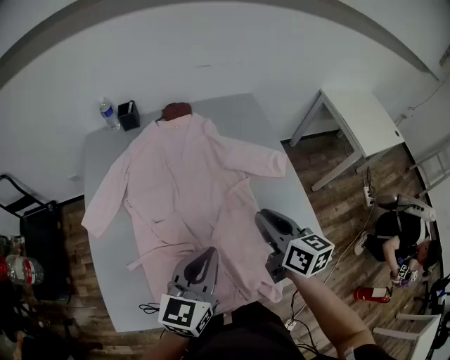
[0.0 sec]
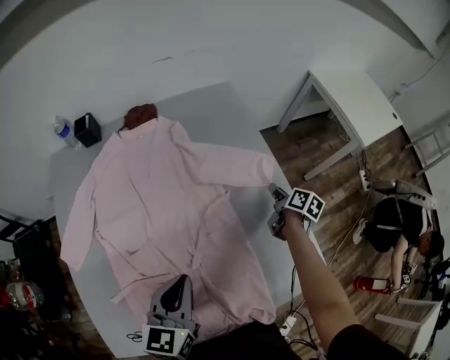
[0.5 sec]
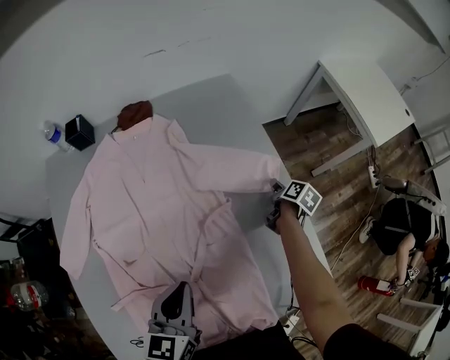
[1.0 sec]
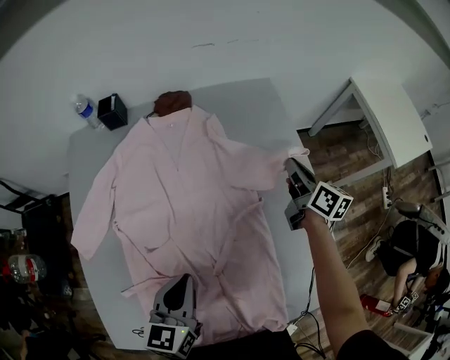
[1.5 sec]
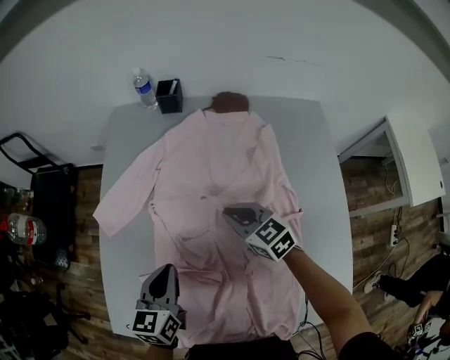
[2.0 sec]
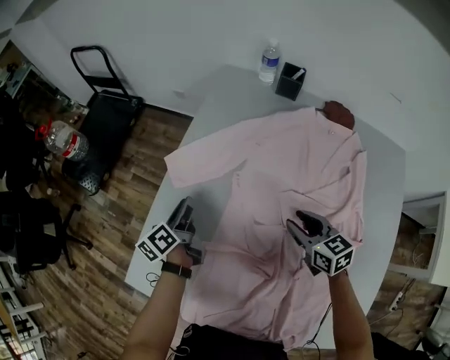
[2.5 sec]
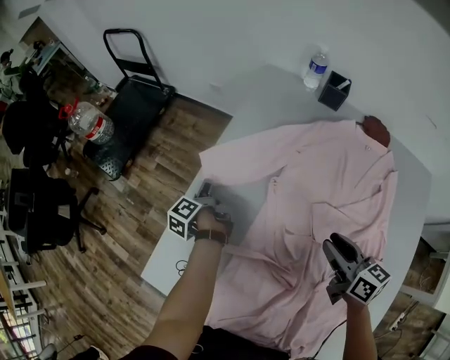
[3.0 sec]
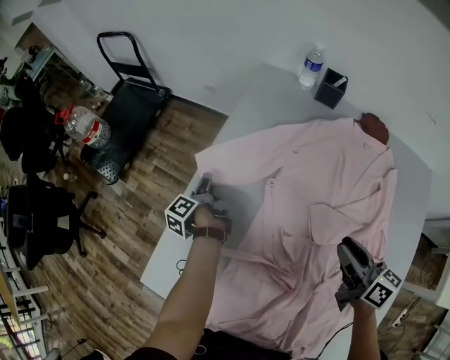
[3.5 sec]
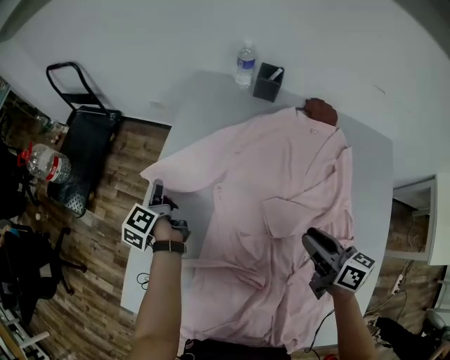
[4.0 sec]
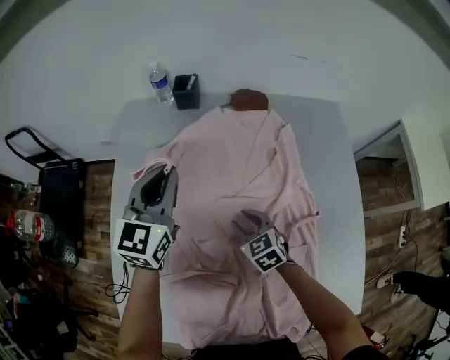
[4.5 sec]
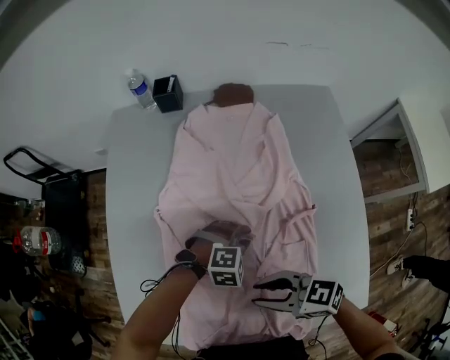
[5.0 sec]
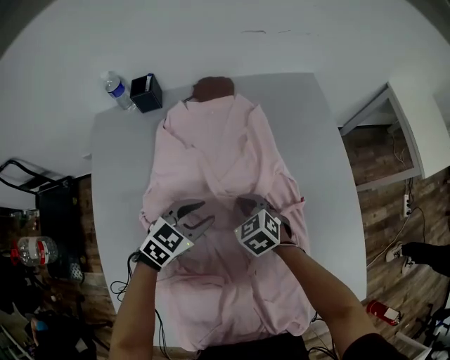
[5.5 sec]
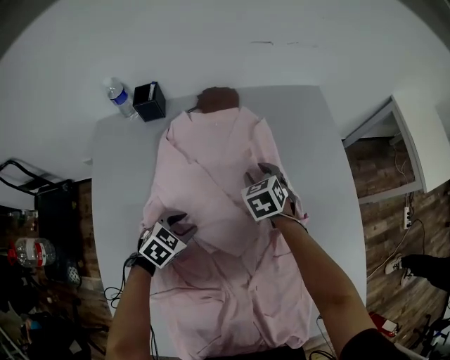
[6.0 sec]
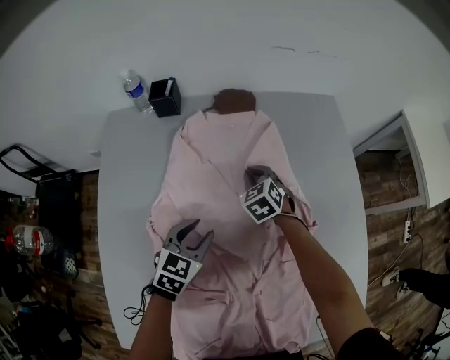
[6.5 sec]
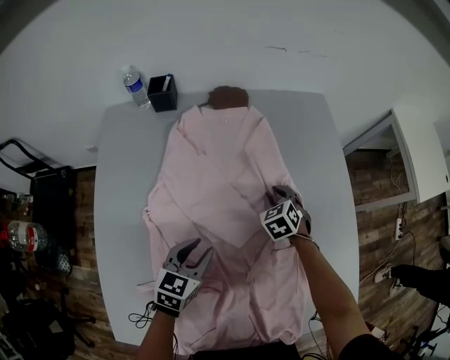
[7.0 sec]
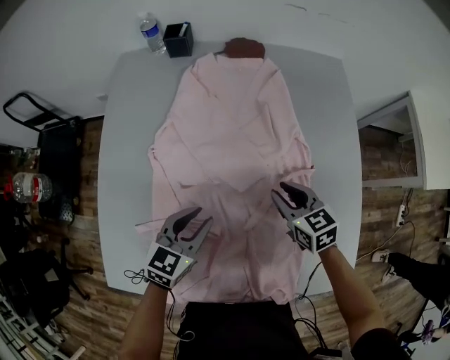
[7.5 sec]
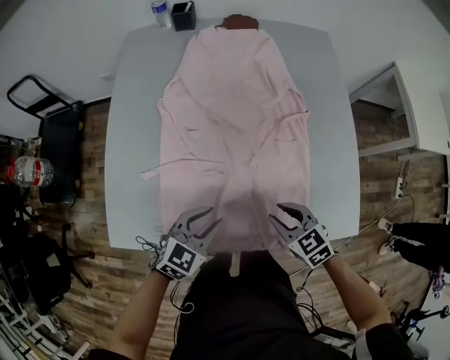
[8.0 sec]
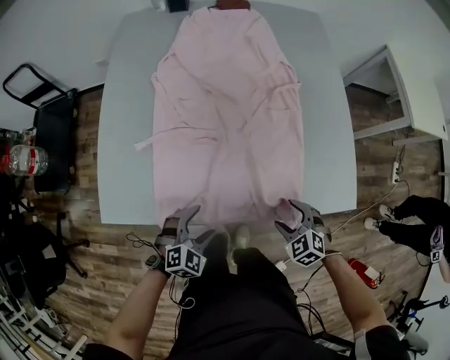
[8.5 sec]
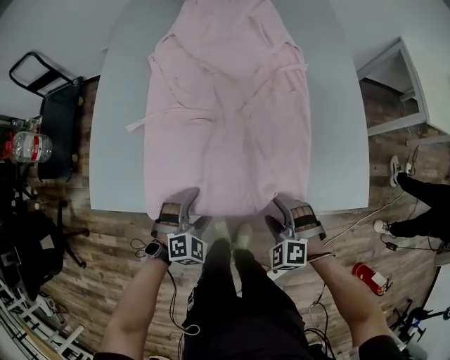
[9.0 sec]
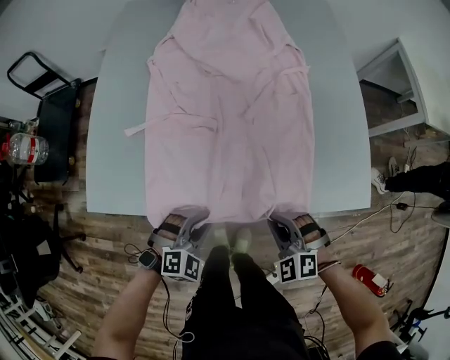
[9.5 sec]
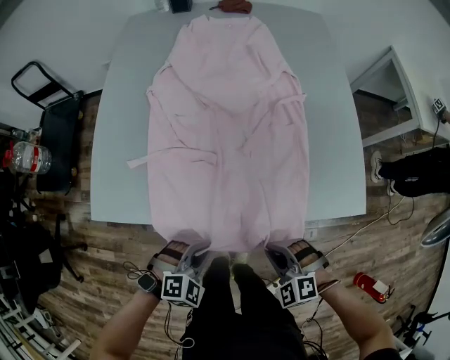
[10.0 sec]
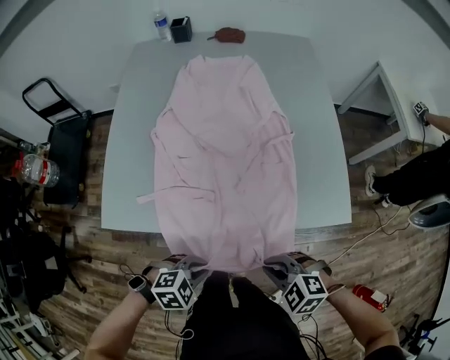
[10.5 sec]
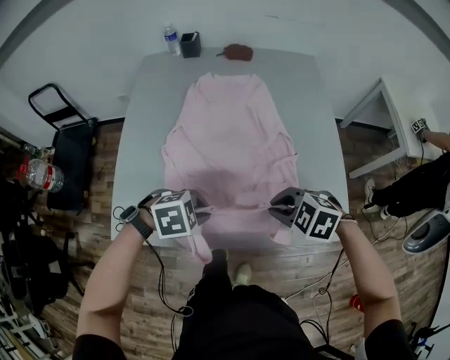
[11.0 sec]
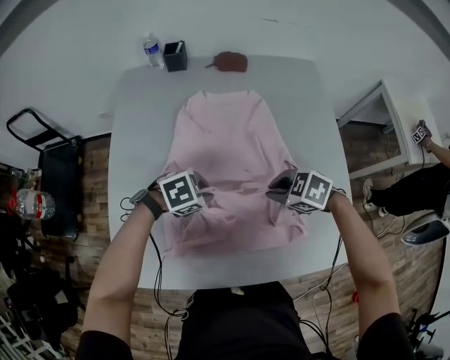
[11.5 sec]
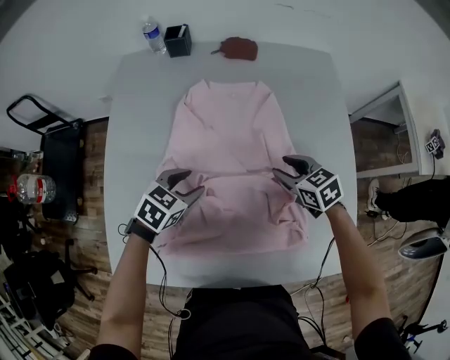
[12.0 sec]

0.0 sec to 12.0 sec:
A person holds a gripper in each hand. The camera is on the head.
0.0 sec to 2.0 sec: The left gripper moves roughly 20 cm, and turns by some 30 degrees. Meanwhile the right gripper goes up and down, roughly 25 cm each way, reversing 2 times, swivels some 50 degrees, and opens and closes again.
2.0 sec to 4.0 sec: The right gripper turns by approximately 40 degrees, while the left gripper goes some 35 cm forward, to the left and downward, twists some 60 degrees counterclockwise, seen from behind, and opens and closes again.
4.0 sec to 6.0 sec: The right gripper goes up and down, some 15 cm each way, reversing 2 times, and rotates approximately 60 degrees, while the left gripper swings up and down, about 25 cm each way, with 3 reversals, points its fingers some 30 degrees further downward, and opens.
6.0 sec to 8.0 sec: The right gripper moves roughly 50 cm, and rotates some 30 degrees; the left gripper moves about 35 cm, and rotates about 20 degrees.
8.0 sec to 10.0 sec: The left gripper shifts some 20 cm backward and downward, rotates about 40 degrees, and opens, then closes once more, while the right gripper shifts some 20 cm backward, twists roughly 40 degrees counterclockwise, seen from behind, and opens, then closes again.
10.0 sec to 12.0 sec: The right gripper moves about 40 cm, rolls clockwise, seen from behind, by some 50 degrees, and opens, while the left gripper shifts by about 40 cm, rotates about 40 degrees, and opens up.

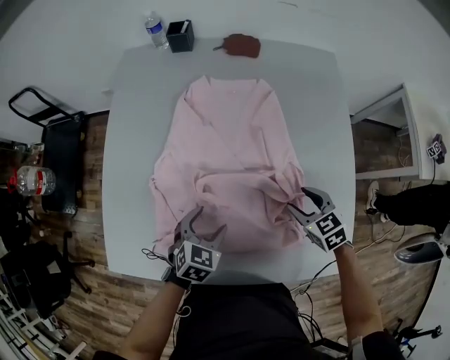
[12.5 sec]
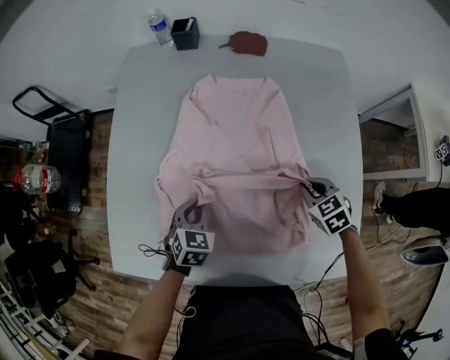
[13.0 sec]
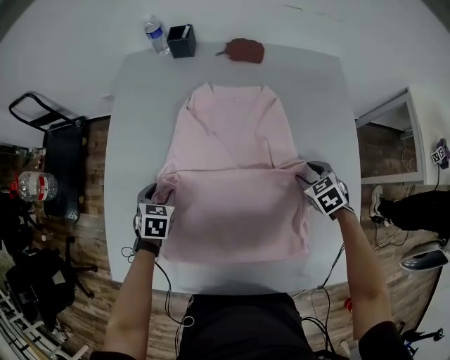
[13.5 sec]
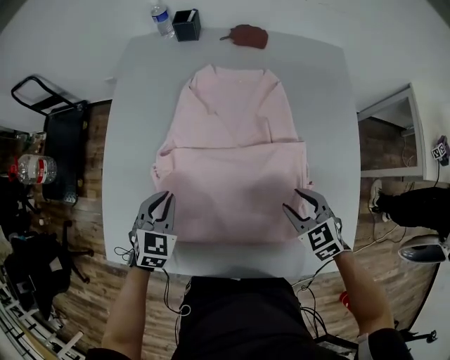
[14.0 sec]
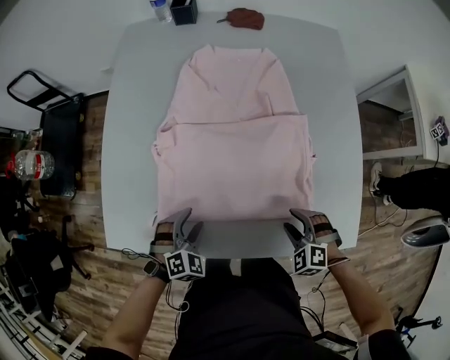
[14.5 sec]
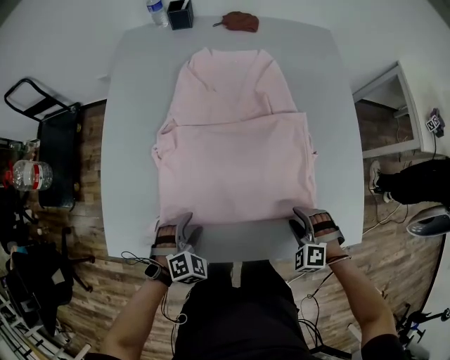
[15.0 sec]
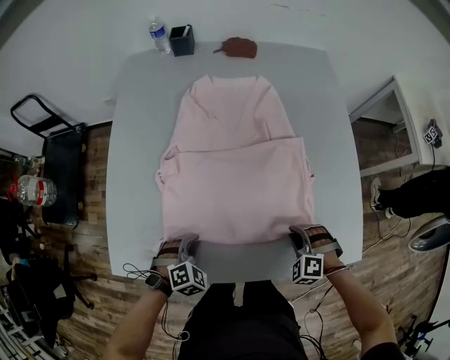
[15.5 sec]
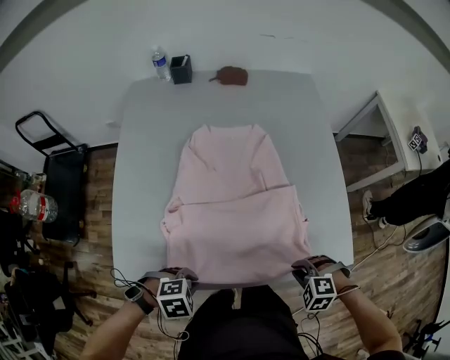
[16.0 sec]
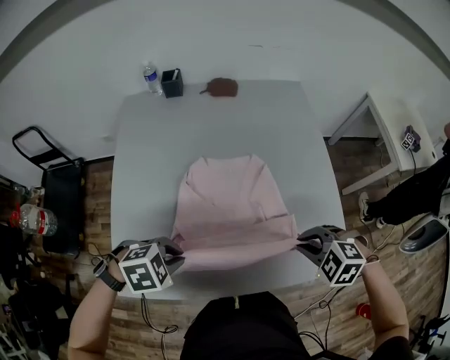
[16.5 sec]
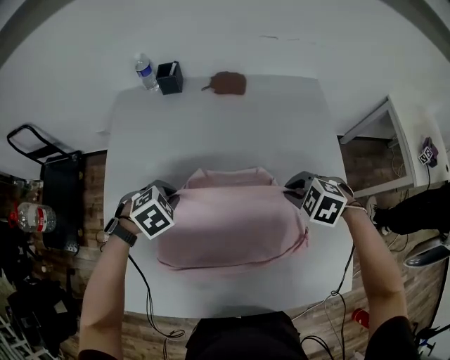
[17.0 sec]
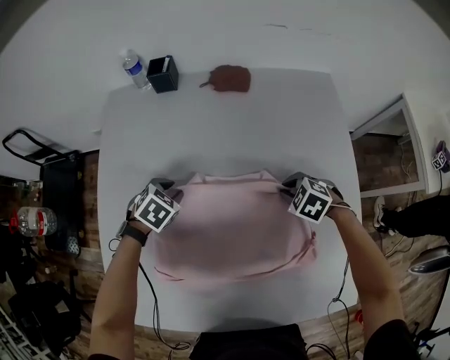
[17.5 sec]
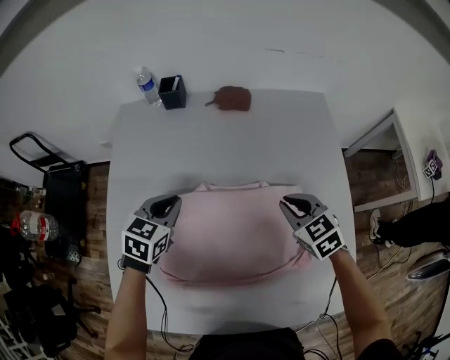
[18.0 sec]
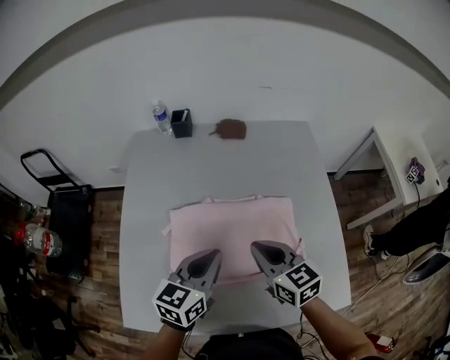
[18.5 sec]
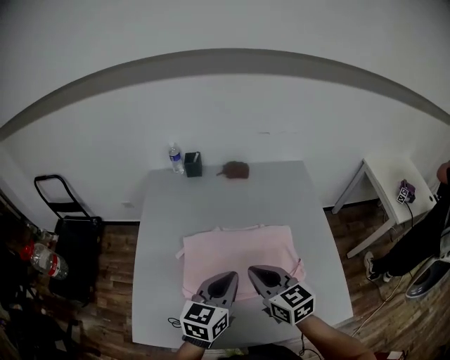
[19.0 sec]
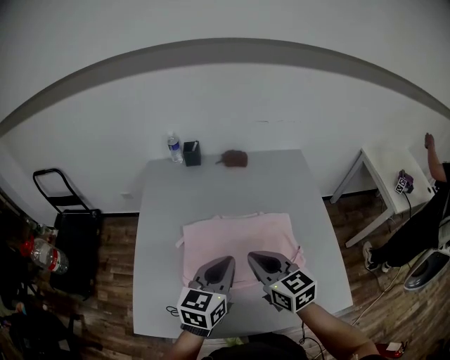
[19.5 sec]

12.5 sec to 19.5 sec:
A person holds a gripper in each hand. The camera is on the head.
12.5 sec to 14.5 sec: The left gripper travels backward, to the left and downward by approximately 15 cm, changes its angle by approximately 30 degrees, and closes and opens again. The right gripper travels backward by some 15 cm, rotates around the line of its fingers by about 40 degrees, counterclockwise from behind, and closes, then reopens.
14.5 sec to 16.0 sec: The left gripper moves approximately 10 cm, swivels roughly 40 degrees, and closes its fingers, while the right gripper moves roughly 10 cm, and closes.
16.0 sec to 17.5 sec: The pair of grippers is taken some 40 cm. The left gripper rotates approximately 40 degrees.
17.5 sec to 19.5 sec: The left gripper travels upward and backward by about 35 cm, and tilts its fingers some 50 degrees upward. Meanwhile the right gripper shifts some 35 cm upward, backward and to the left, and tilts its fingers some 50 degrees upward.

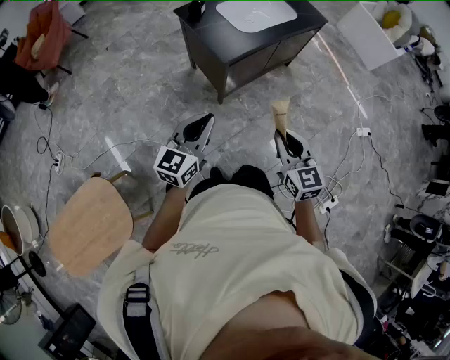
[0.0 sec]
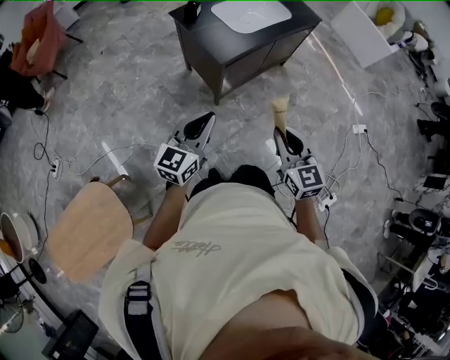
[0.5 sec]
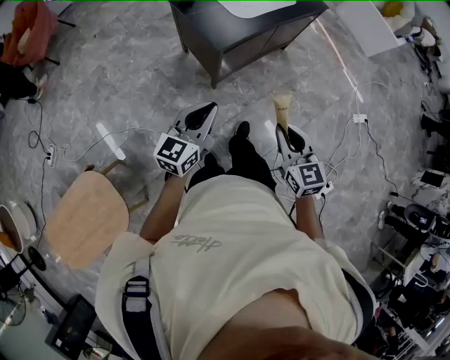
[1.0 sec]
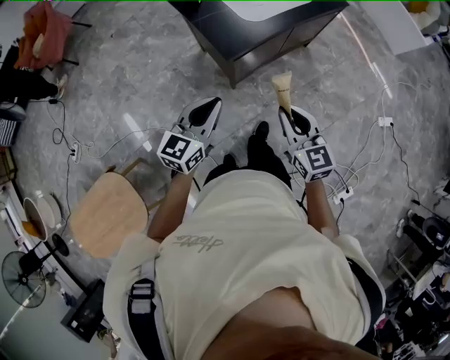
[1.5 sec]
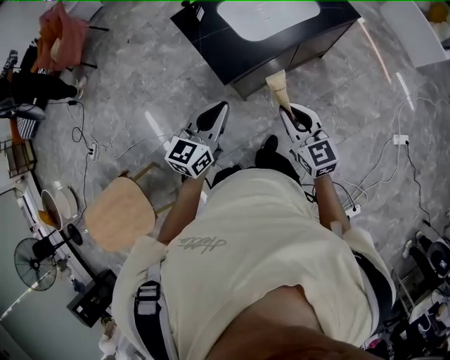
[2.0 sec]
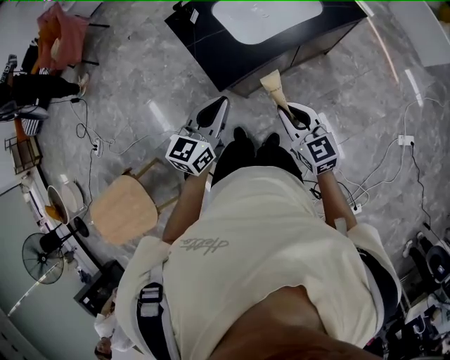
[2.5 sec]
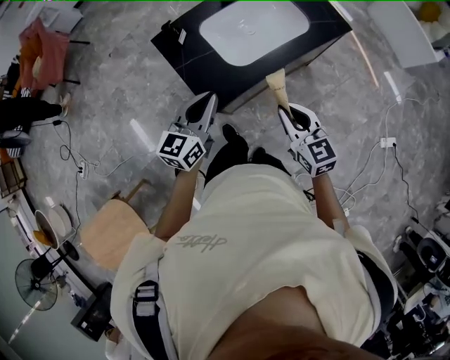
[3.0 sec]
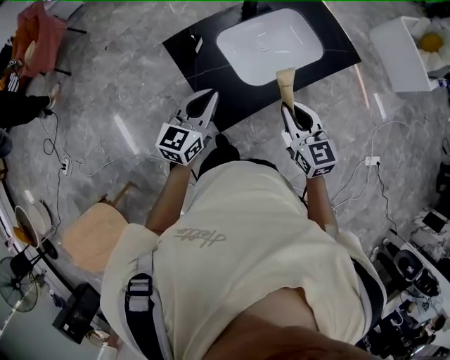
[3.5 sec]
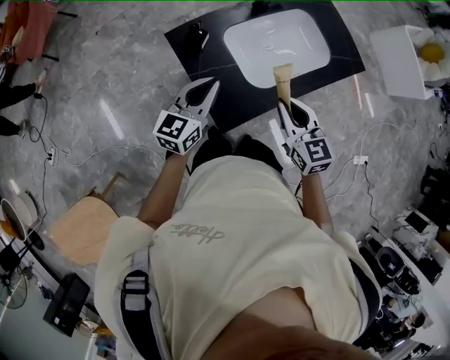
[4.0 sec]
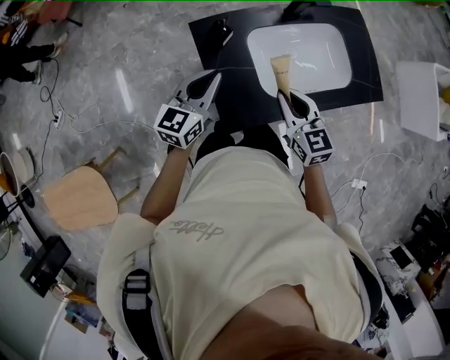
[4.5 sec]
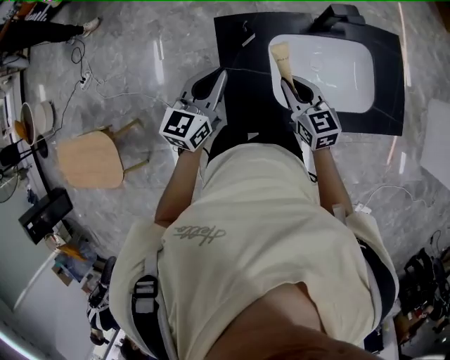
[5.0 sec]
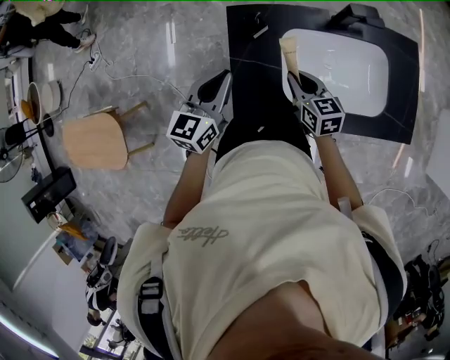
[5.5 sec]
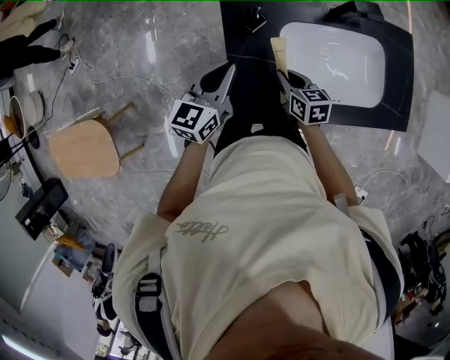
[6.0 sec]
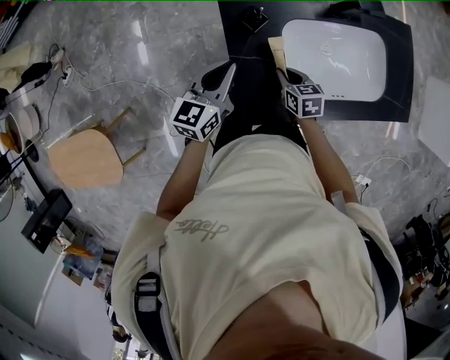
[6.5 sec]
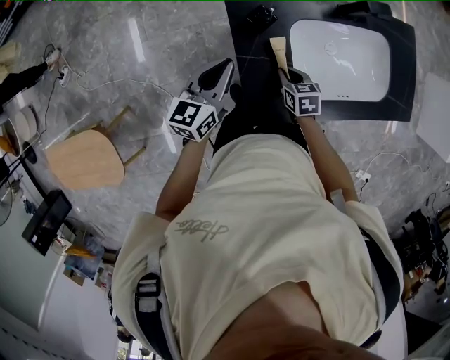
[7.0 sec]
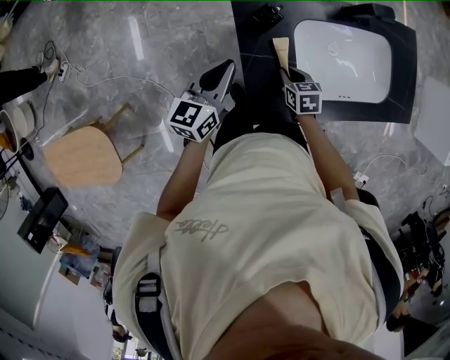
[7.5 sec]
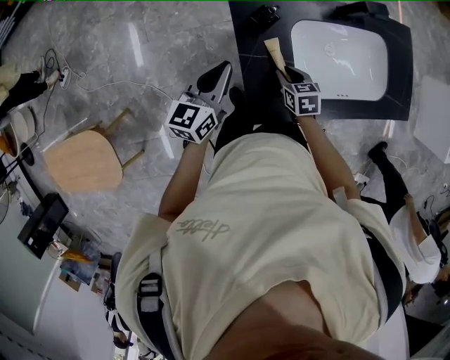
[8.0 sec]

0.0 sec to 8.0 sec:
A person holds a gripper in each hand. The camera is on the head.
0.0 sec to 2.0 sec: The left gripper moves forward and to the right, some 25 cm. Meanwhile the right gripper goes roughly 30 cm forward.
2.0 sec to 4.0 sec: Both grippers move forward, approximately 30 cm.
4.0 sec to 6.0 sec: The left gripper ends up approximately 10 cm from where it was, and turns by about 30 degrees. The right gripper moves downward, some 20 cm, and swivels about 40 degrees.
6.0 sec to 8.0 sec: The left gripper heads to the left, covering about 10 cm, while the right gripper travels downward by some 5 cm.
